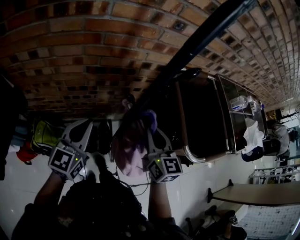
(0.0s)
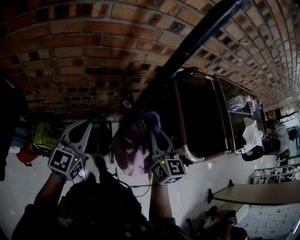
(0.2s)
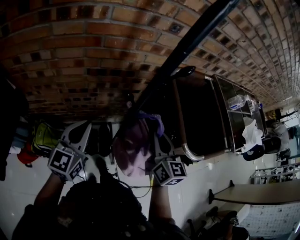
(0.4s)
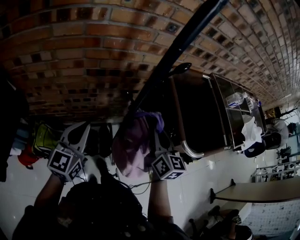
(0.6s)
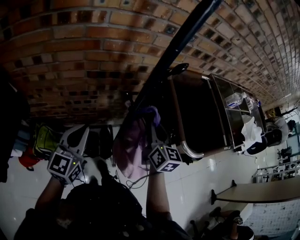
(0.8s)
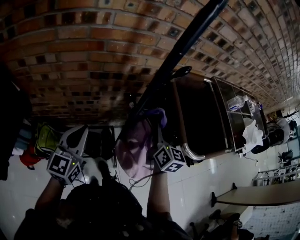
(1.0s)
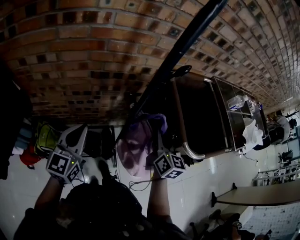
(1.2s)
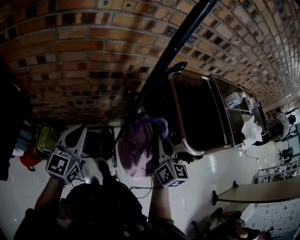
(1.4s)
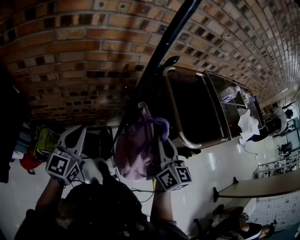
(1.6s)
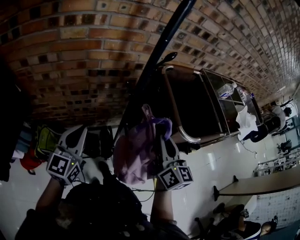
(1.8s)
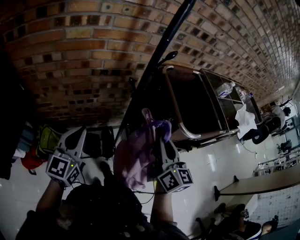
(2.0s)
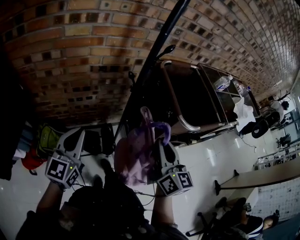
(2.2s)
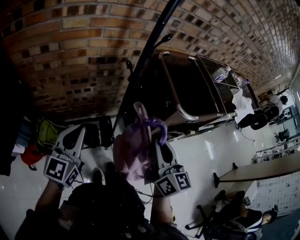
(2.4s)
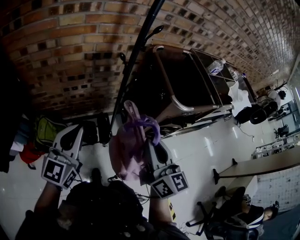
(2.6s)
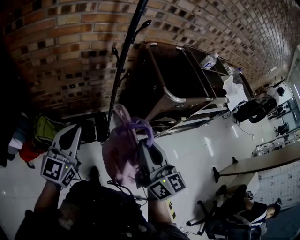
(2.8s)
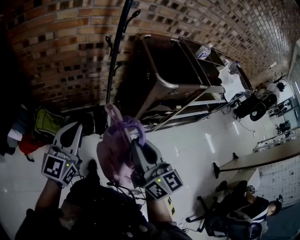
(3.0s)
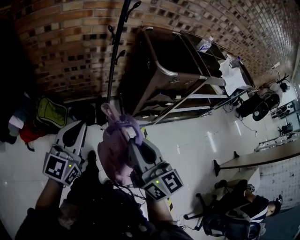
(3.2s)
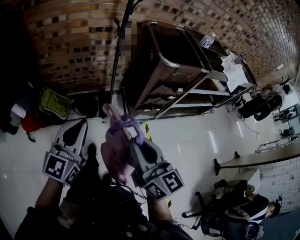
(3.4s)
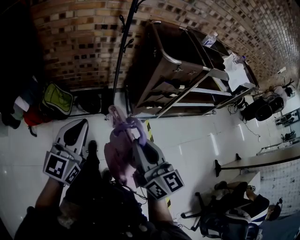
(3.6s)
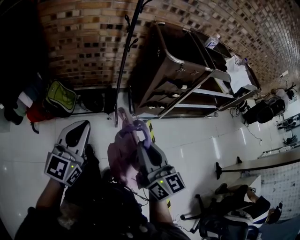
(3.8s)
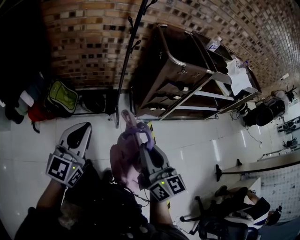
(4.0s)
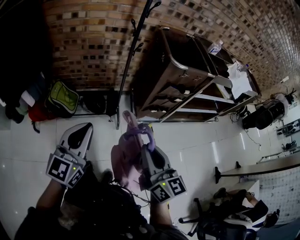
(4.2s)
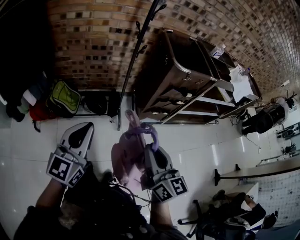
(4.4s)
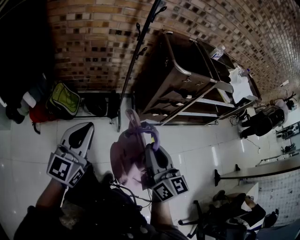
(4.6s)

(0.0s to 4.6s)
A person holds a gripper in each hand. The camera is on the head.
0.0s - 1.6s: The left gripper is displaced backward by roughly 5 cm. The right gripper shifts approximately 10 cm backward and upward.
1.6s - 3.0s: Both grippers move backward, some 30 cm.
3.0s - 4.6s: Both grippers move backward, roughly 20 cm.

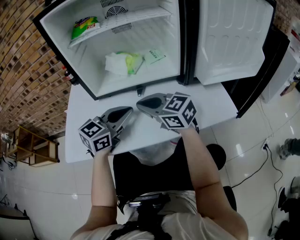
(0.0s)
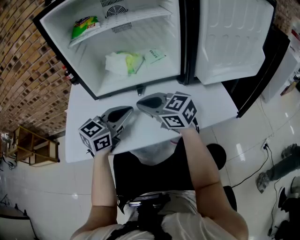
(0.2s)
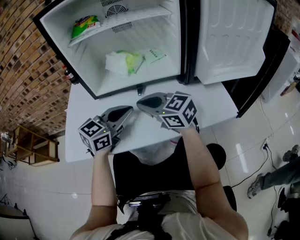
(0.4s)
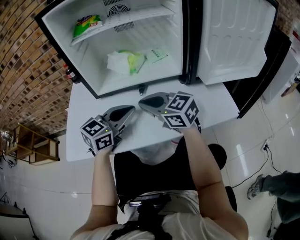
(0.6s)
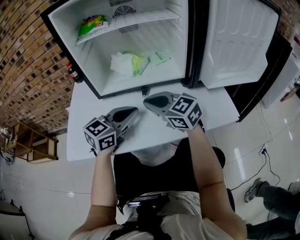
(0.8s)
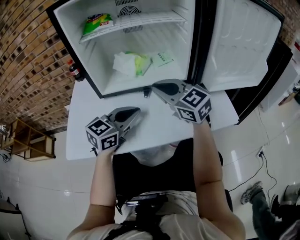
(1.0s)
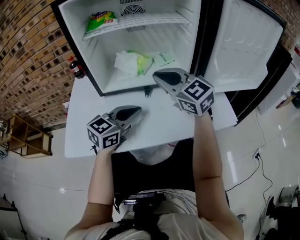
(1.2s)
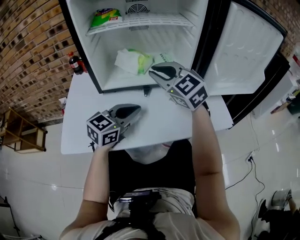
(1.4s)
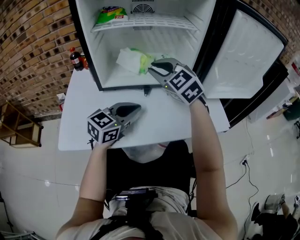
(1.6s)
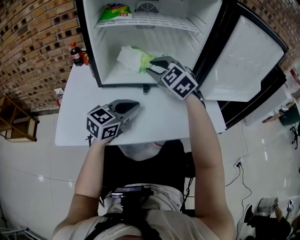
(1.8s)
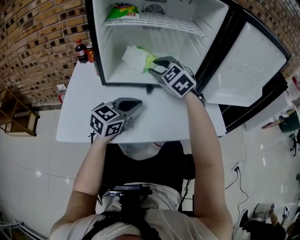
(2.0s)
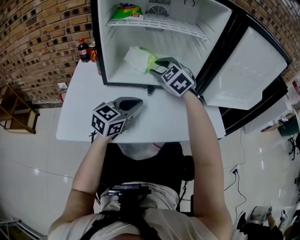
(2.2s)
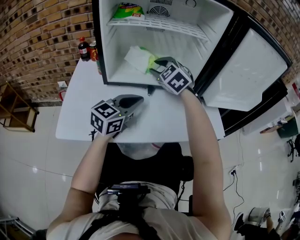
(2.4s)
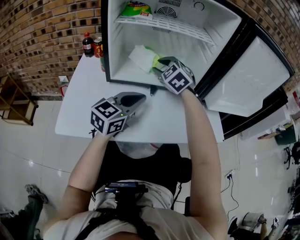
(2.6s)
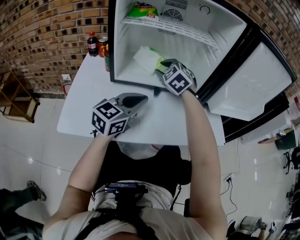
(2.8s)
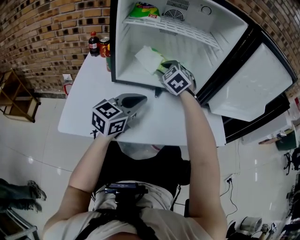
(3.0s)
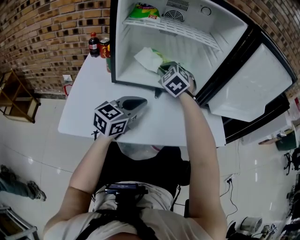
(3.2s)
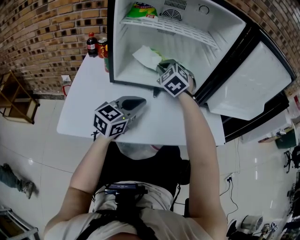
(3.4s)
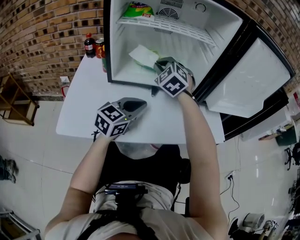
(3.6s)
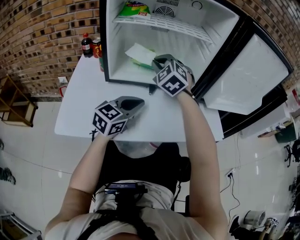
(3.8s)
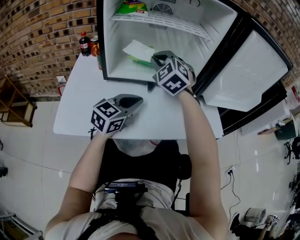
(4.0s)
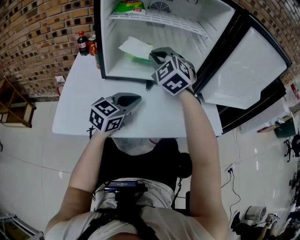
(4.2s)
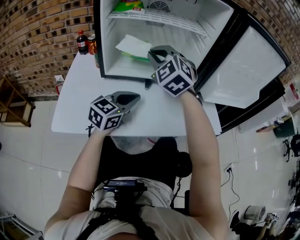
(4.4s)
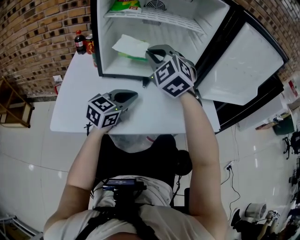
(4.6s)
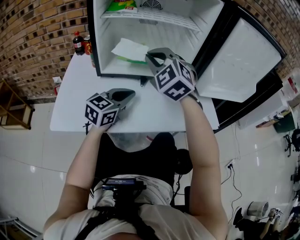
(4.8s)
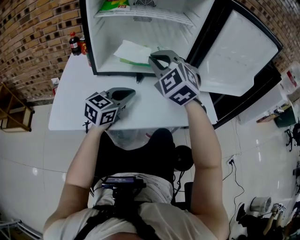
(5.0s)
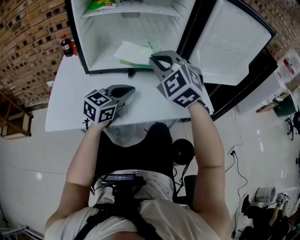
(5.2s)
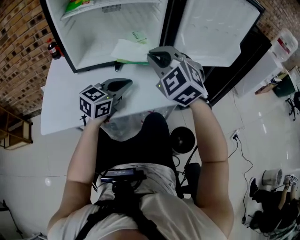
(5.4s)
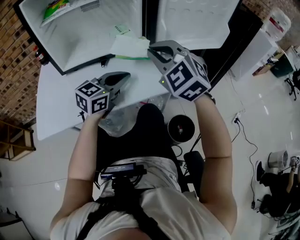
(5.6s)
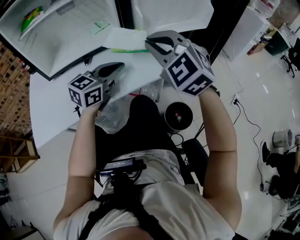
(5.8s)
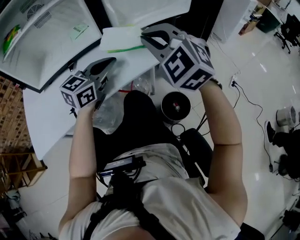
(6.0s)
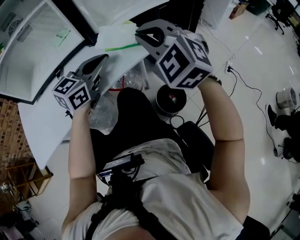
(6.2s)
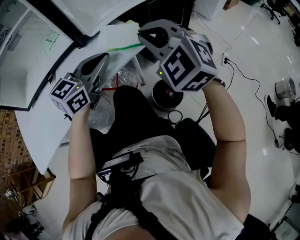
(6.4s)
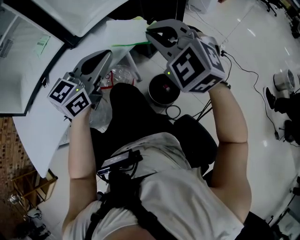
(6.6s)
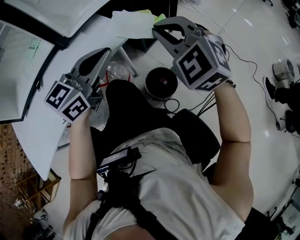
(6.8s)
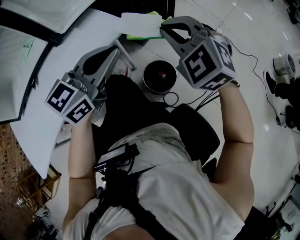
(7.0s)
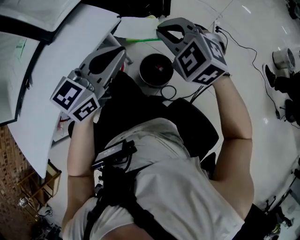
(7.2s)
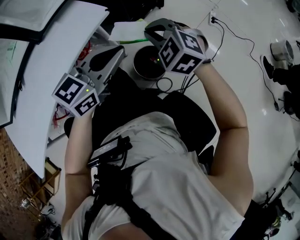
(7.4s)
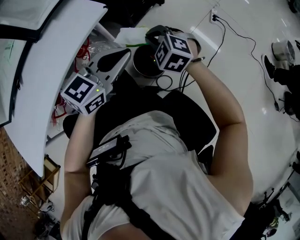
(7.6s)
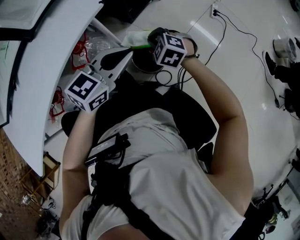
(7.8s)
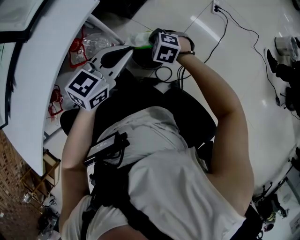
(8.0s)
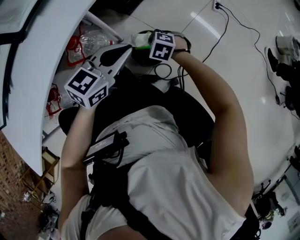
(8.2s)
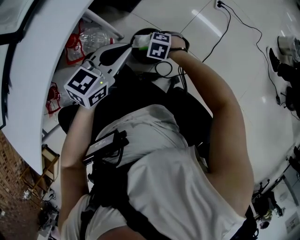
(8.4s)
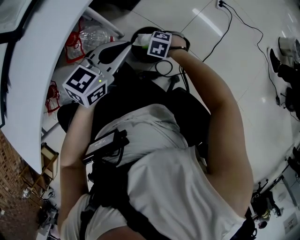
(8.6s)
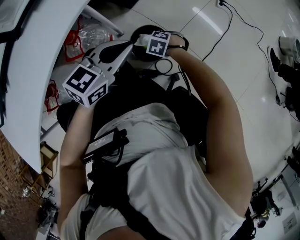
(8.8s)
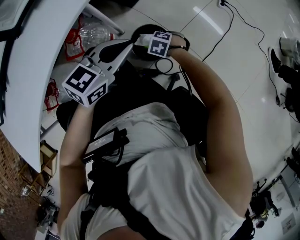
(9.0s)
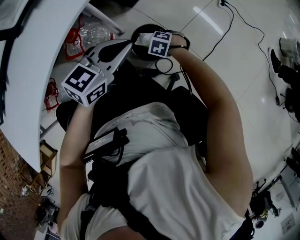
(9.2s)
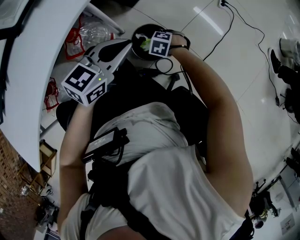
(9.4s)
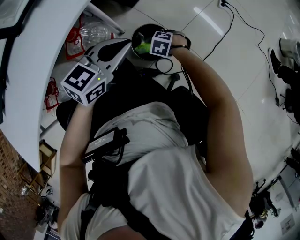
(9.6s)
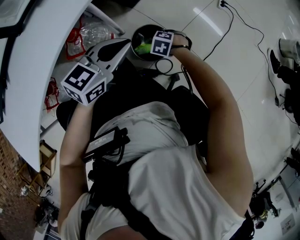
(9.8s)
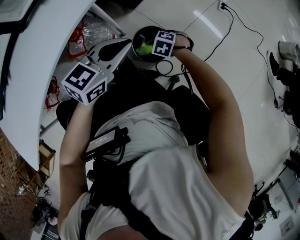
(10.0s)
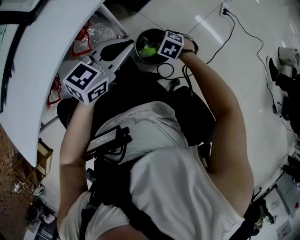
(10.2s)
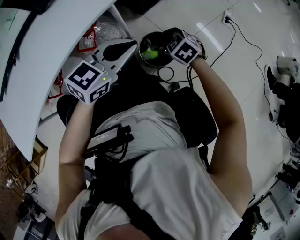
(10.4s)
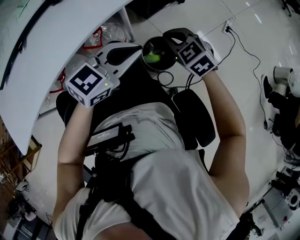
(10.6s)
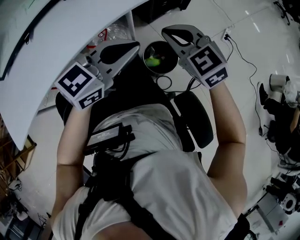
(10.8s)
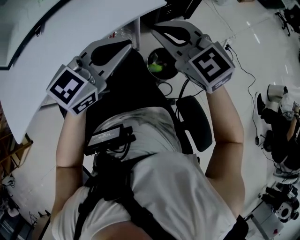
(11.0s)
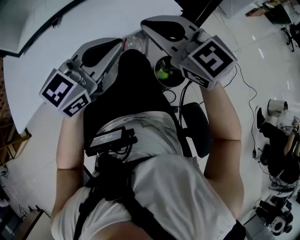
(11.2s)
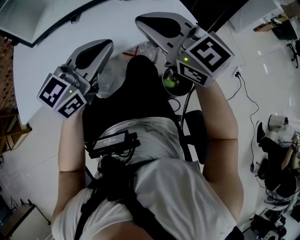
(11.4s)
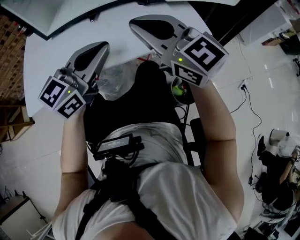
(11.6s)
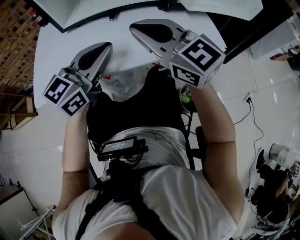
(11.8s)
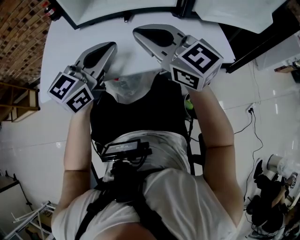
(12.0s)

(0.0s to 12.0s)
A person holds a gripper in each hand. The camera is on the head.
0.0s - 1.6s: The right gripper shifts roughly 15 cm upward and forward, and changes its angle by approximately 40 degrees.
1.6s - 3.0s: The right gripper shifts roughly 10 cm forward and downward, and swivels some 20 degrees.
3.0s - 4.4s: The right gripper travels upward and backward by some 15 cm, and closes its fingers.
4.4s - 6.0s: The right gripper heads to the right, covering approximately 35 cm; the left gripper is displaced to the right by some 20 cm, and swivels about 20 degrees.
6.0s - 7.6s: The left gripper travels to the right and downward by approximately 25 cm, and turns by about 30 degrees. The right gripper is displaced downward and to the right by approximately 35 cm, and turns by about 40 degrees.
7.6s - 9.0s: The right gripper shifts roughly 25 cm downward, and angles its fingers downward, by roughly 30 degrees. The left gripper goes about 10 cm downward.
9.0s - 10.4s: The left gripper changes place by some 5 cm; the right gripper is displaced upward by roughly 15 cm, rotates some 20 degrees, and opens and closes again.
10.4s - 12.0s: The left gripper moves some 40 cm, and rotates some 50 degrees, while the right gripper moves upward, about 40 cm, and angles its fingers upward, by some 50 degrees.

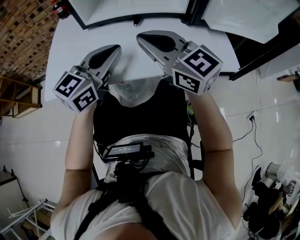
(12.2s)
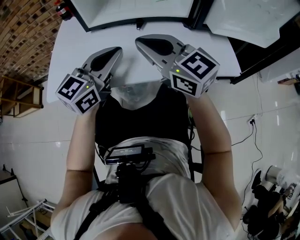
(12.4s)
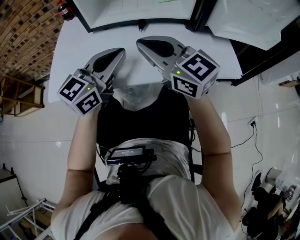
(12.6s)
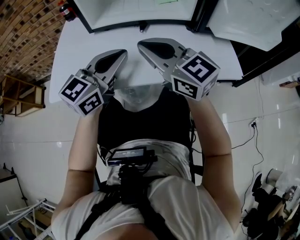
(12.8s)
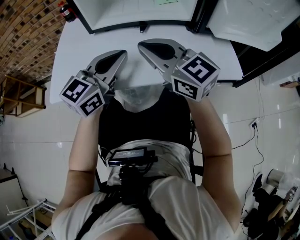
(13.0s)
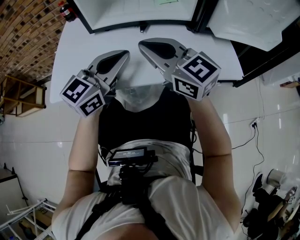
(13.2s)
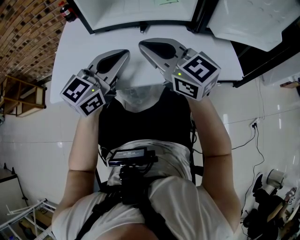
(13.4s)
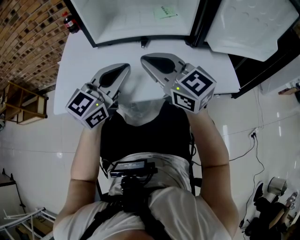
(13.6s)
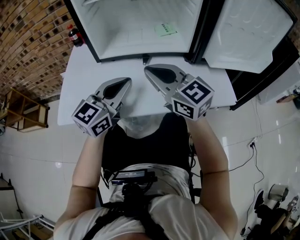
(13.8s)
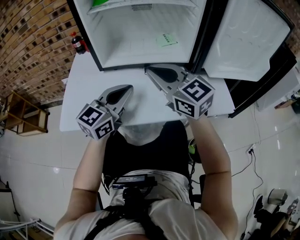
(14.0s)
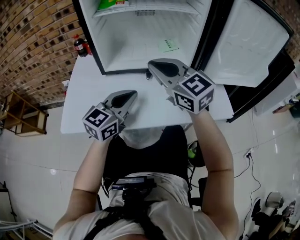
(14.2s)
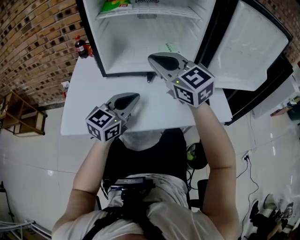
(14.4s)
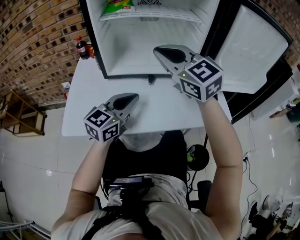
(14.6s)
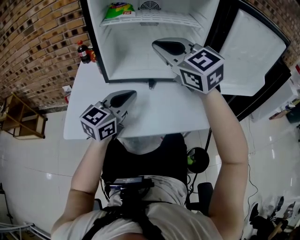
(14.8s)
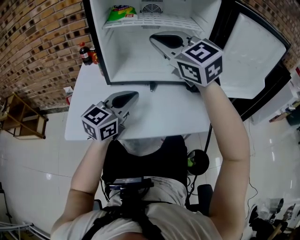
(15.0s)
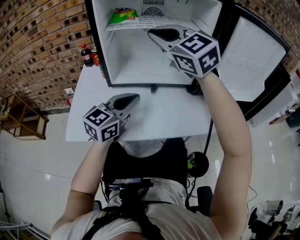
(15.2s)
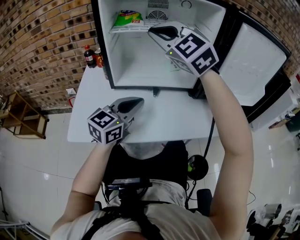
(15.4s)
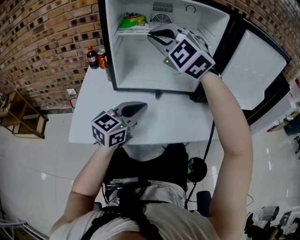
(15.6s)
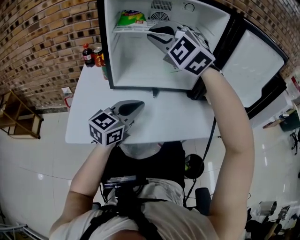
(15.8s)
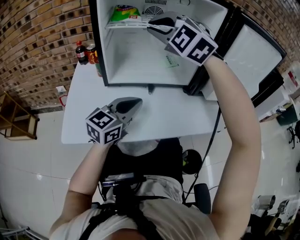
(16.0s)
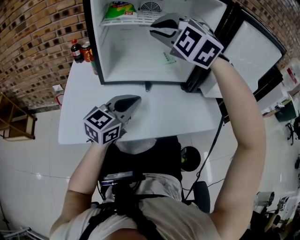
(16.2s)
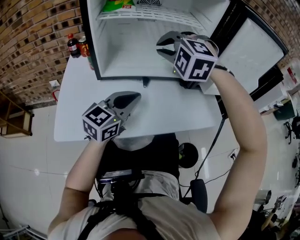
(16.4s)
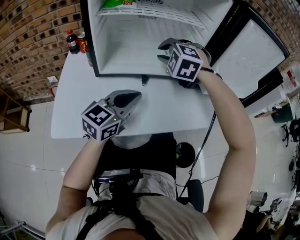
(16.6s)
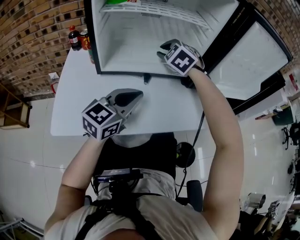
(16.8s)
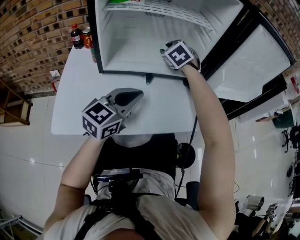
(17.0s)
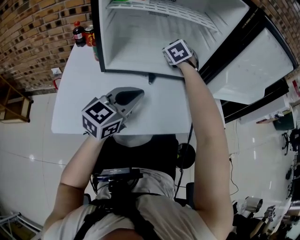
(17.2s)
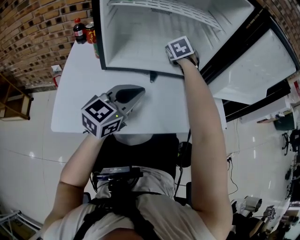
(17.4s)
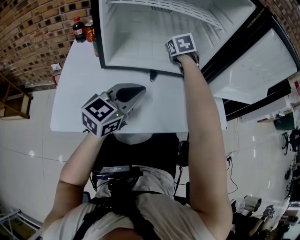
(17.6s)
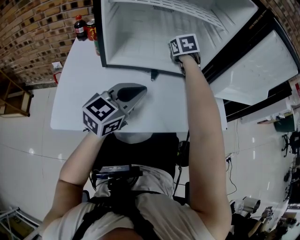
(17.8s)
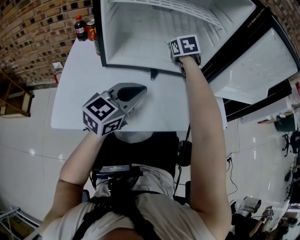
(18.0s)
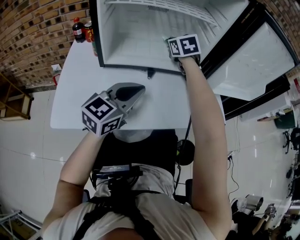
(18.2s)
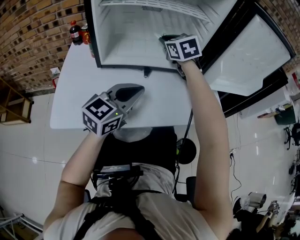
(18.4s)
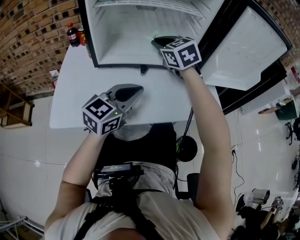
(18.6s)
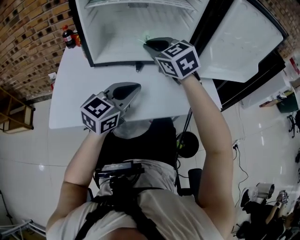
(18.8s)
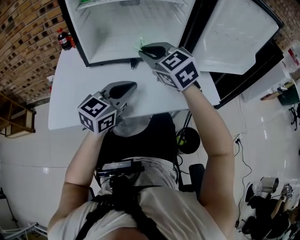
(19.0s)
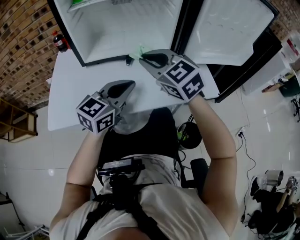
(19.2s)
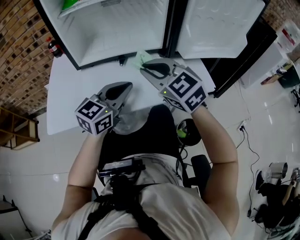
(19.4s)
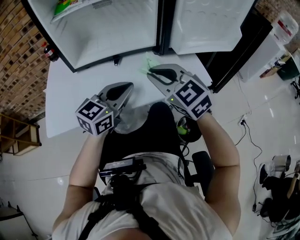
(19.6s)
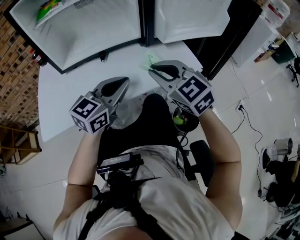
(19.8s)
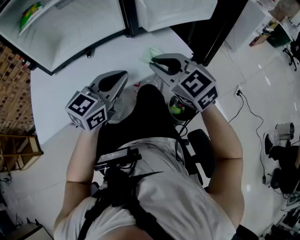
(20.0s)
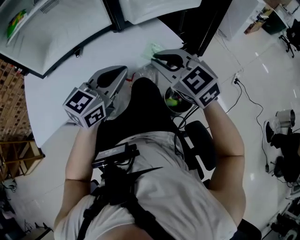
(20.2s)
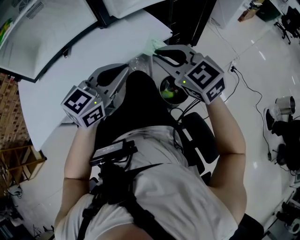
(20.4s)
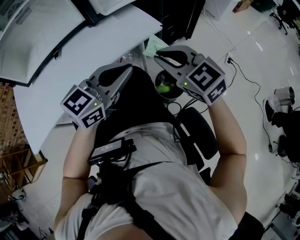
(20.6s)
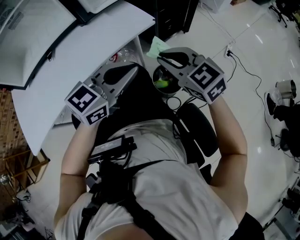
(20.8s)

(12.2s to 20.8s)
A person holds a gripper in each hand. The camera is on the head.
12.2s - 13.6s: The grippers move only a little.
13.6s - 15.0s: The right gripper travels upward and forward by some 20 cm, and swivels approximately 20 degrees, while the left gripper shifts by some 5 cm.
15.0s - 16.6s: The right gripper travels downward and forward by approximately 20 cm, angles its fingers downward, by about 40 degrees, and opens its fingers.
16.6s - 18.0s: The right gripper moves forward and downward, roughly 15 cm, and twists roughly 60 degrees clockwise, seen from behind.
18.0s - 19.4s: The left gripper shifts approximately 5 cm to the right. Meanwhile the right gripper heads backward, covering roughly 30 cm, and swivels about 30 degrees.
19.4s - 20.8s: The left gripper ends up about 25 cm from where it was, and rotates some 30 degrees; the right gripper ends up roughly 30 cm from where it was, and rotates some 30 degrees.
